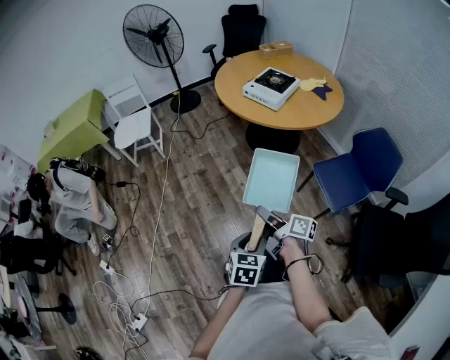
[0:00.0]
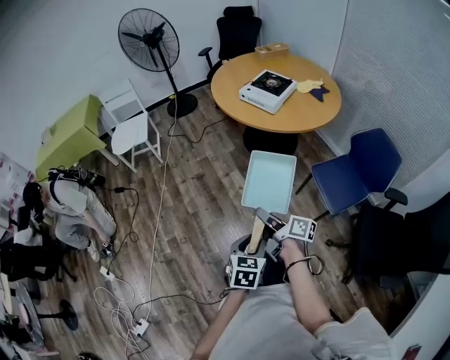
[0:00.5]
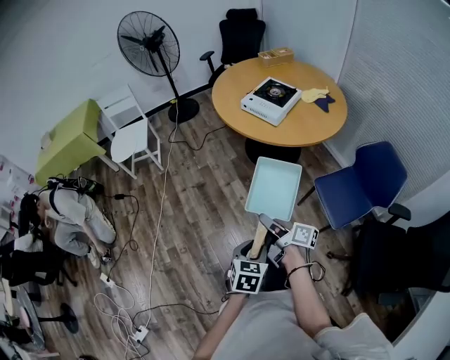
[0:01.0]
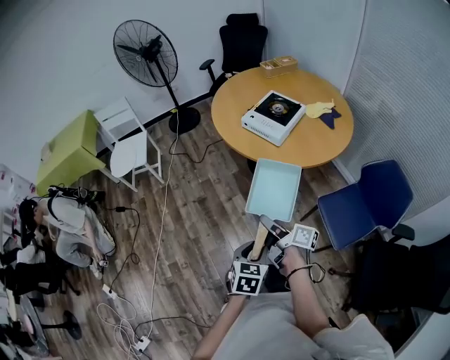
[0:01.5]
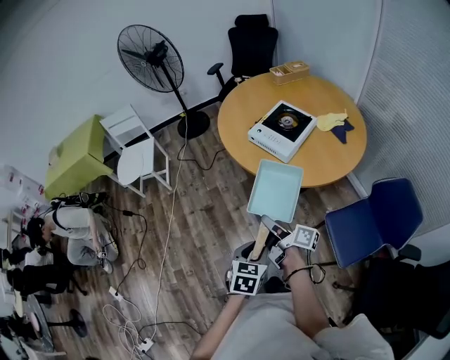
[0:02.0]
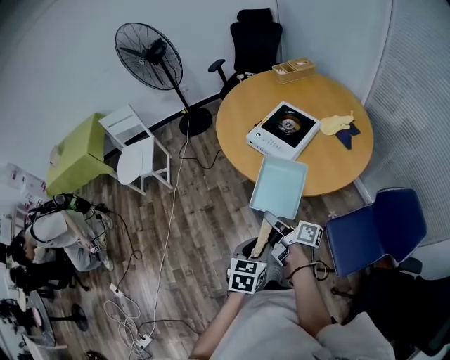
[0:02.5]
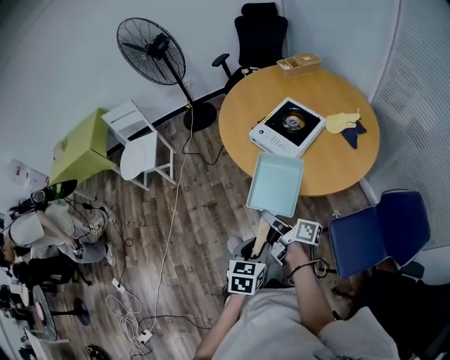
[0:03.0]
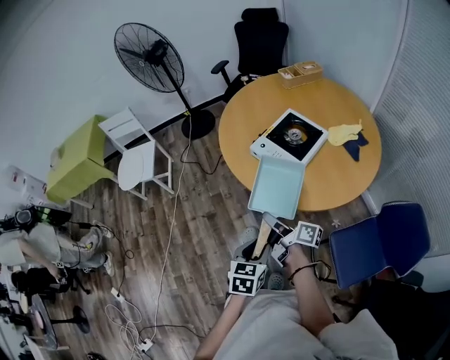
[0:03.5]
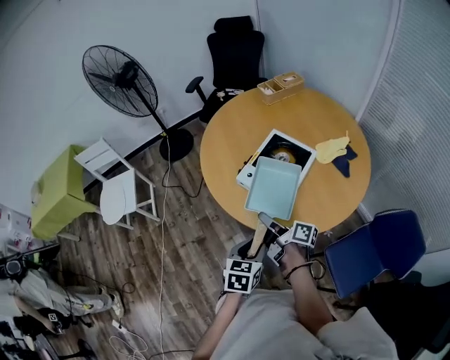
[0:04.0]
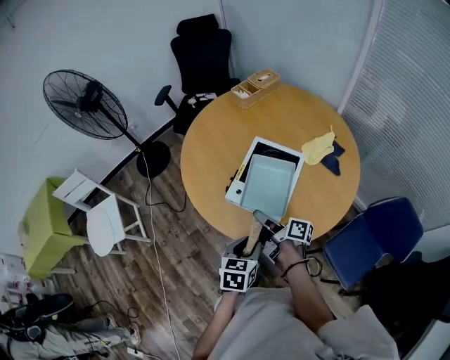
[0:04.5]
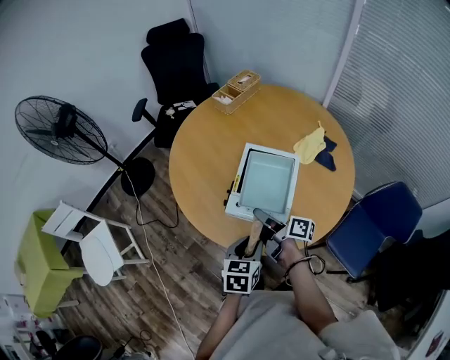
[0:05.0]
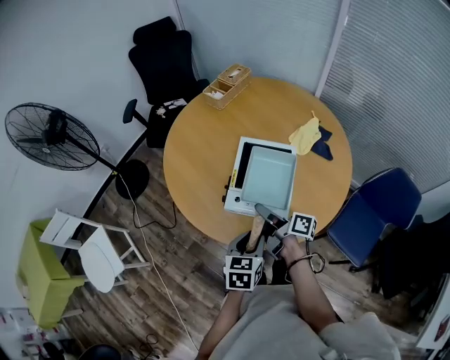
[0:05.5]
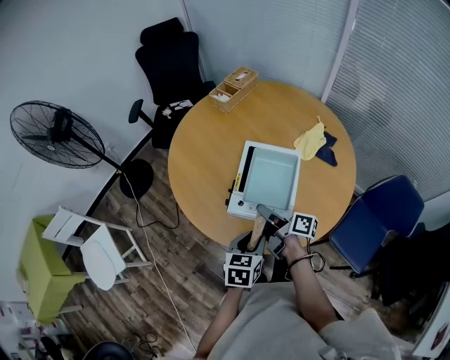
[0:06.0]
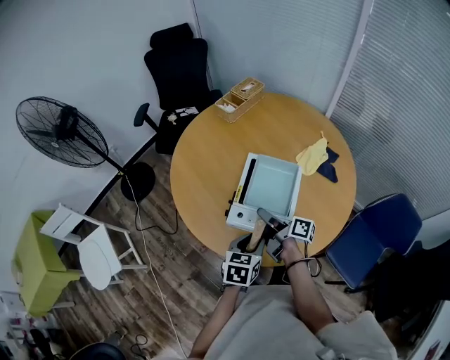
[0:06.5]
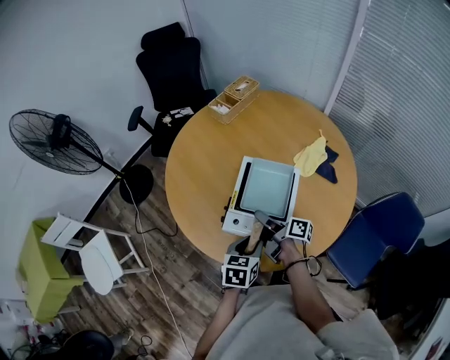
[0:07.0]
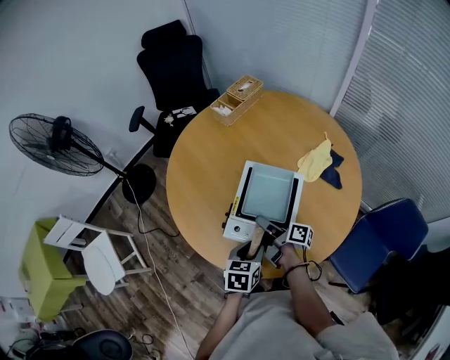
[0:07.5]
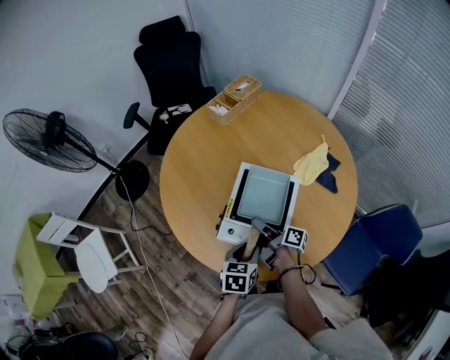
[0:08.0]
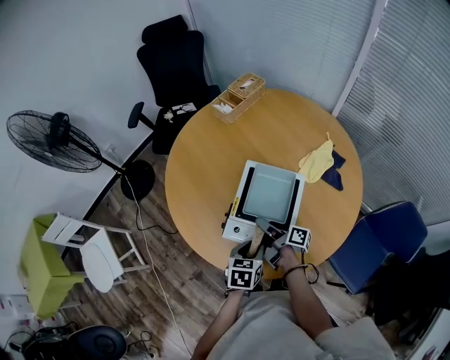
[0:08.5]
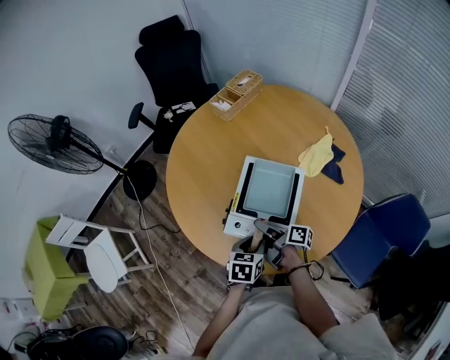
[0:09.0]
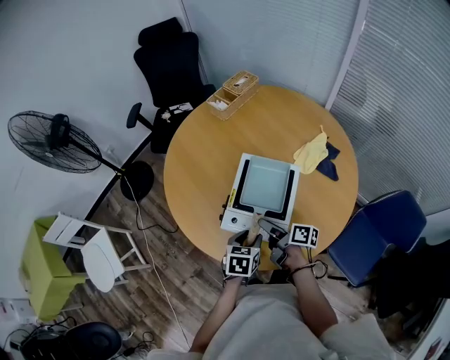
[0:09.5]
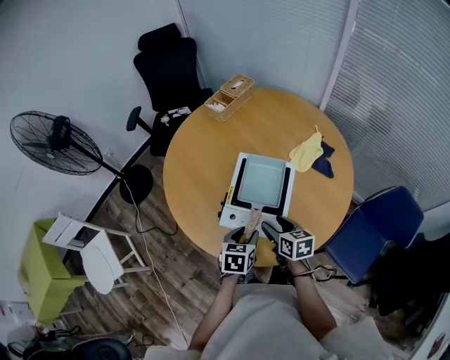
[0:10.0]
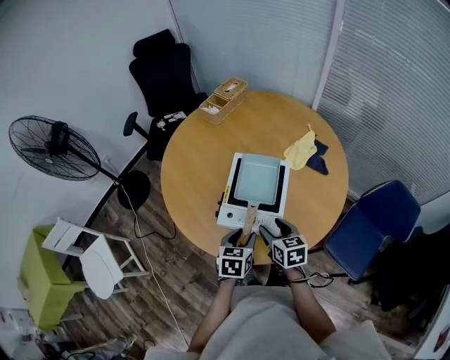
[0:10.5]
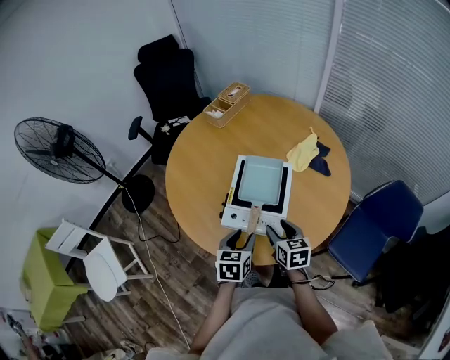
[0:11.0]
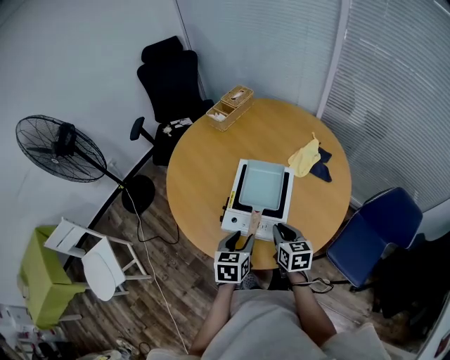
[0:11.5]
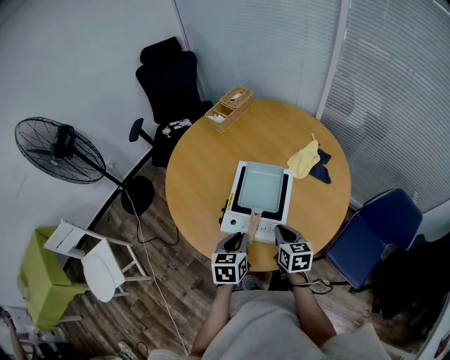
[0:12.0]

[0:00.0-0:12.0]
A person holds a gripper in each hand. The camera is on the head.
0:00.0 to 0:02.0: The grippers both shift forward by about 30 cm.
0:02.0 to 0:04.0: Both grippers move forward, about 25 cm.
0:04.0 to 0:06.0: The two grippers go some 15 cm forward. The right gripper rotates roughly 20 degrees. Meanwhile the left gripper changes its angle by roughly 20 degrees.
0:06.0 to 0:08.0: The right gripper travels forward and downward by roughly 10 cm, while the left gripper is displaced forward by about 5 cm.
0:08.0 to 0:10.0: The right gripper shifts about 5 cm backward, twists some 50 degrees counterclockwise, seen from behind, and opens.
0:10.0 to 0:12.0: The left gripper shifts by roughly 5 cm, and closes; the right gripper closes its fingers.

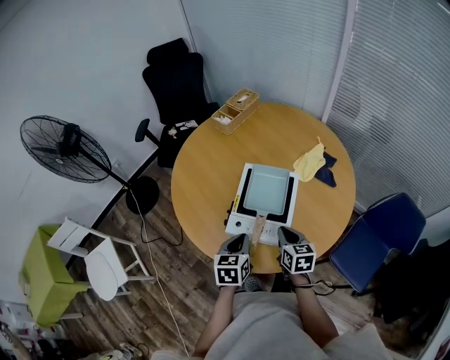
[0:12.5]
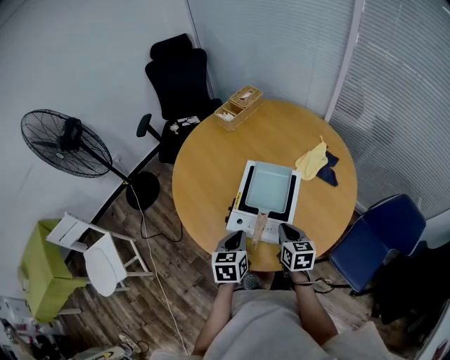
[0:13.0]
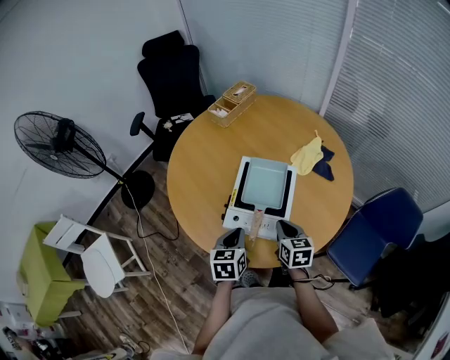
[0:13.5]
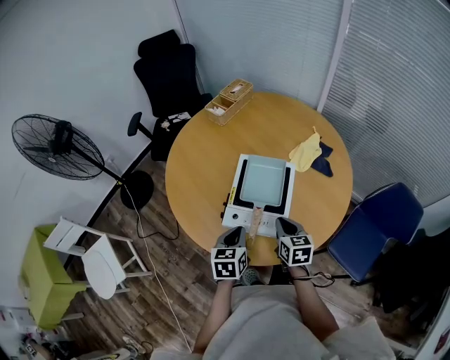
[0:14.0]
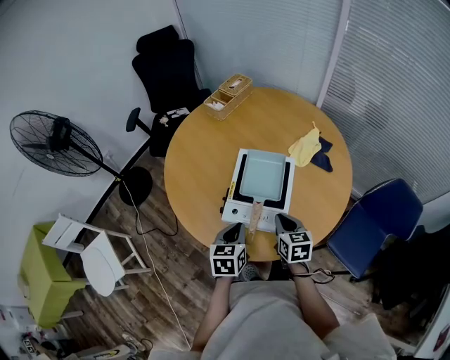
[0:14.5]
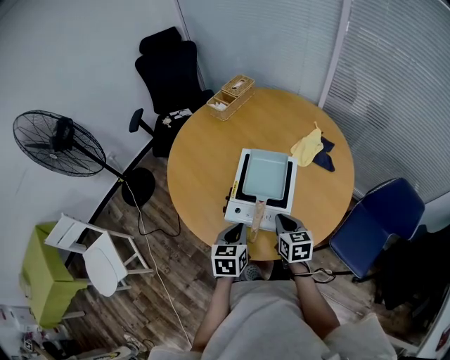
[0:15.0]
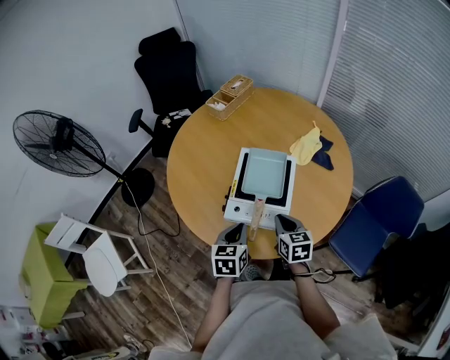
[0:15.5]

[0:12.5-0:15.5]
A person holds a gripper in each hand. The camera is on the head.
0:12.5 to 0:15.5: The grippers move only a little.

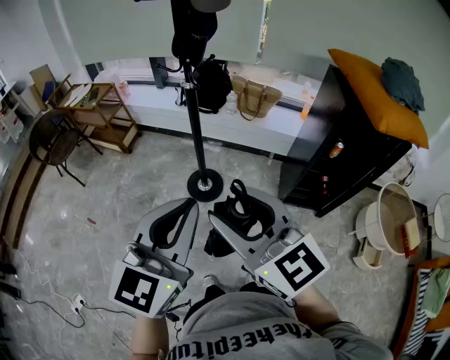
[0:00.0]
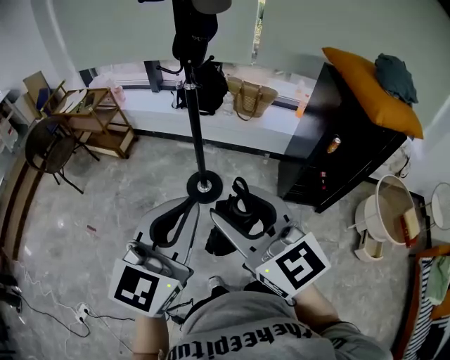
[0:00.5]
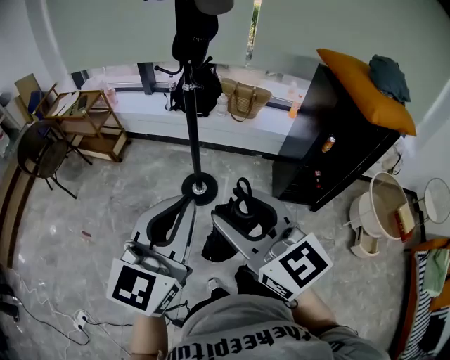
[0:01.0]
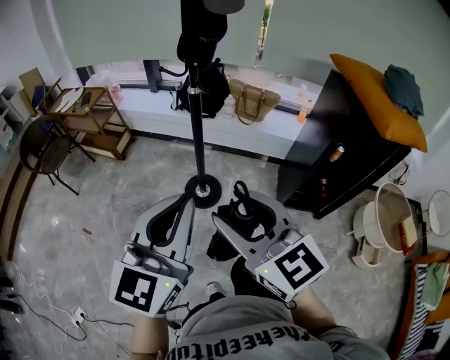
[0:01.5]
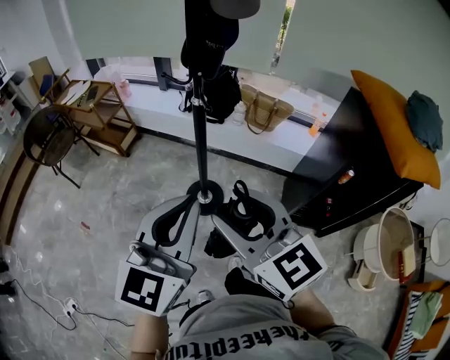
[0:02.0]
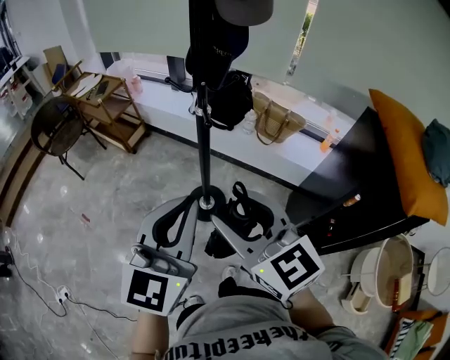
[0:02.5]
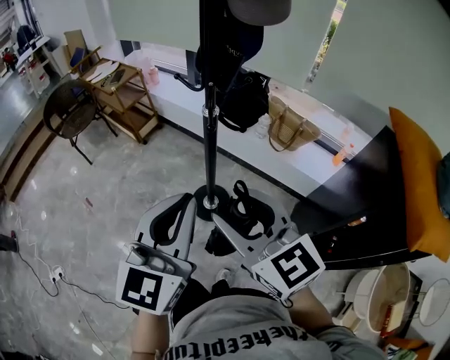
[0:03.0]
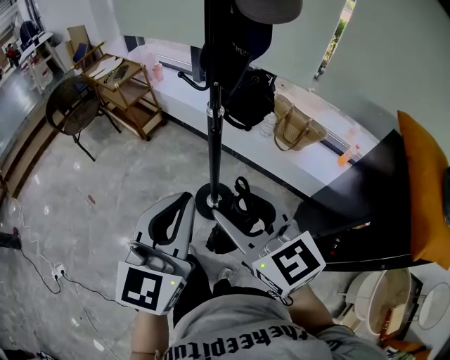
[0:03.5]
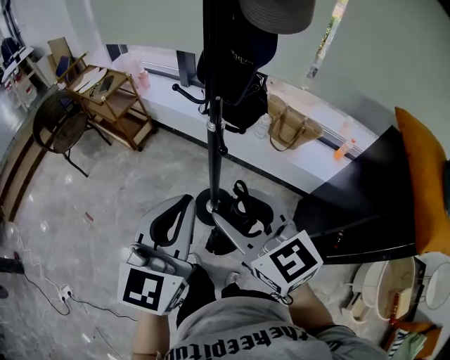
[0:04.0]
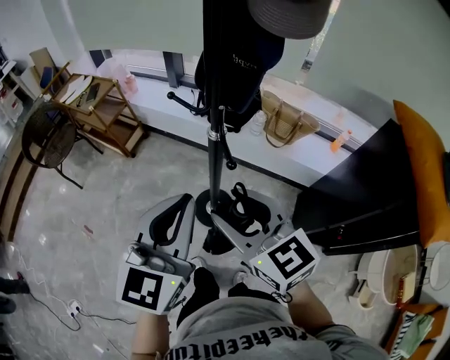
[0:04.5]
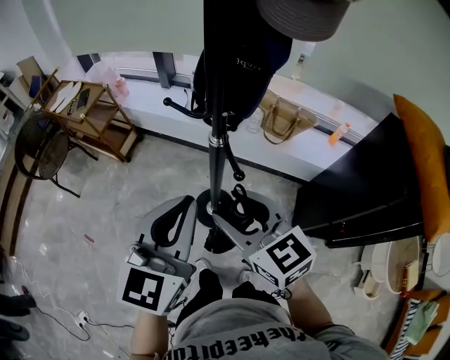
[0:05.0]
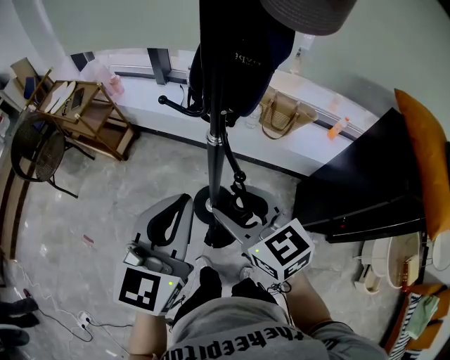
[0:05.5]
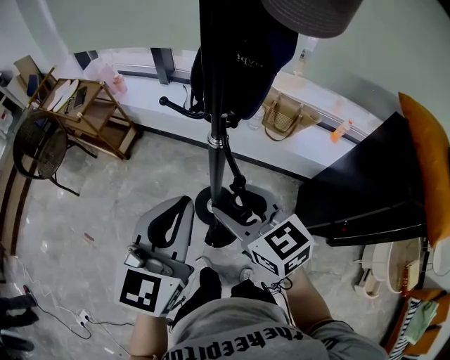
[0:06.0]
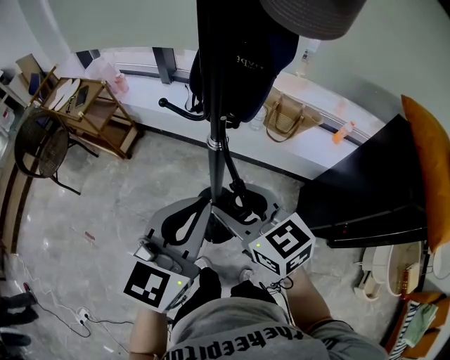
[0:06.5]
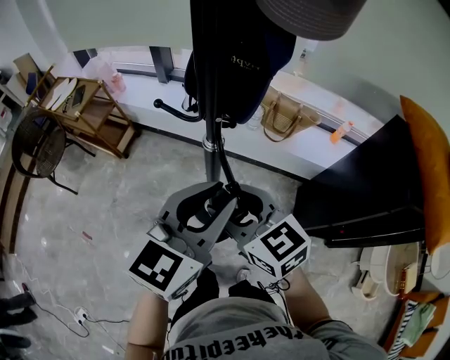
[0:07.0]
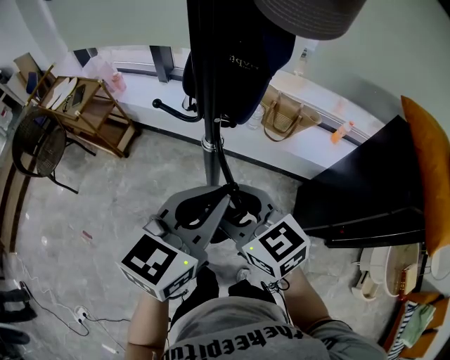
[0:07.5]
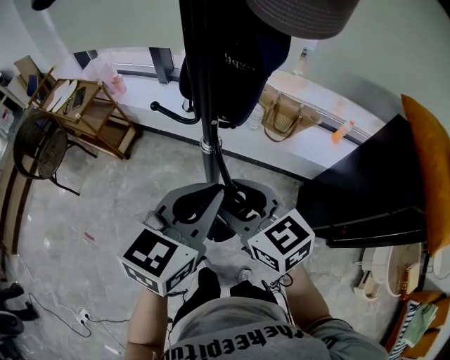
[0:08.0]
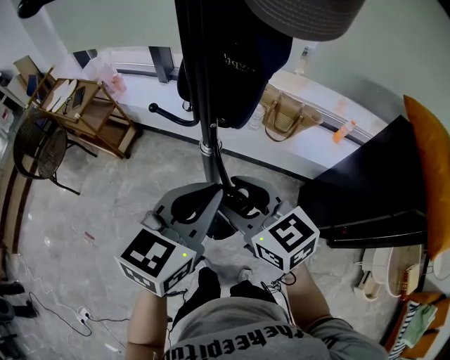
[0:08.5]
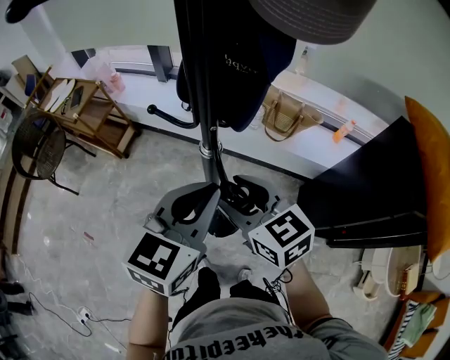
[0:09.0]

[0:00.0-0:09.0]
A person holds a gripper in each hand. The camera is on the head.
0:00.0 to 0:02.0: Both grippers move forward, roughly 15 cm.
0:02.0 to 0:04.5: Both grippers travel together forward, approximately 20 cm.
0:04.5 to 0:07.0: The right gripper heads forward and downward, covering approximately 10 cm, while the left gripper goes roughly 10 cm to the right and forward, rotates some 20 degrees, and opens its fingers.
0:07.0 to 0:09.0: The right gripper changes place by approximately 5 cm.

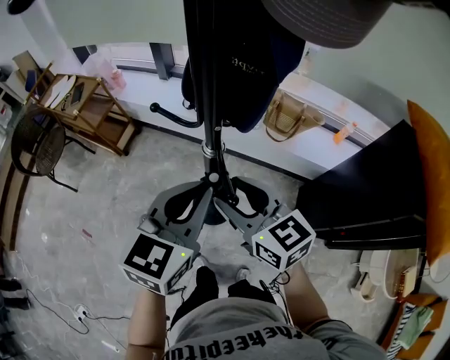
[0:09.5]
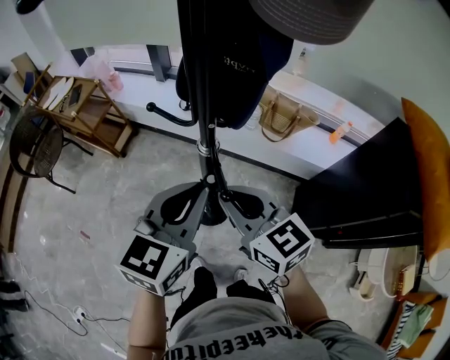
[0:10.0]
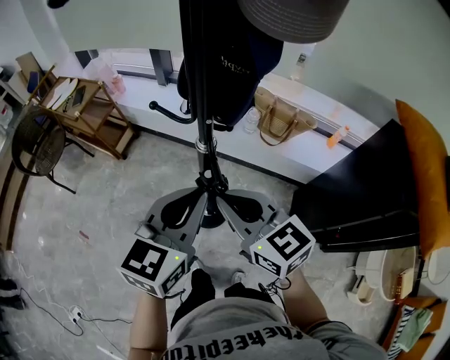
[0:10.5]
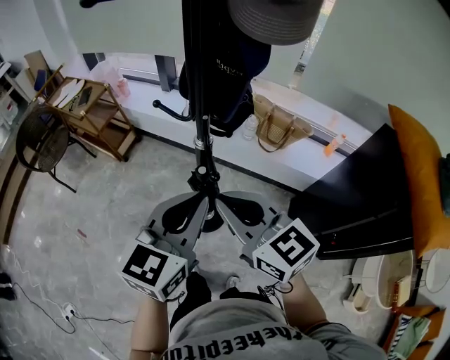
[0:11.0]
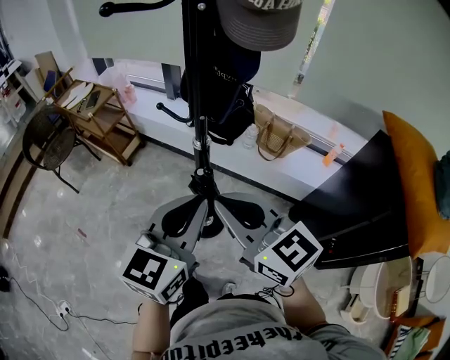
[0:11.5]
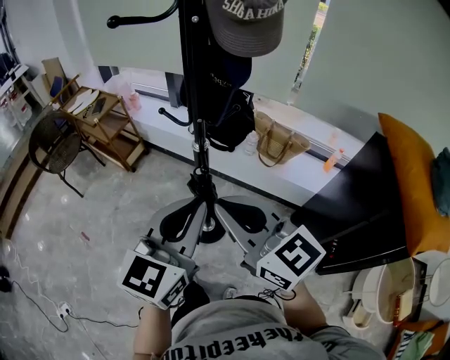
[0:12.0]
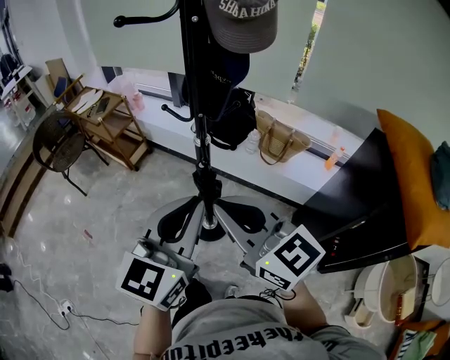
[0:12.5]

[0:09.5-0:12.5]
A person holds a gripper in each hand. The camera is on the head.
0:09.5 to 0:11.0: The left gripper moves backward, roughly 5 cm, while the right gripper shifts roughly 10 cm backward and upward, and closes up.
0:11.0 to 0:12.5: Both grippers travel together backward and upward, approximately 10 cm.
